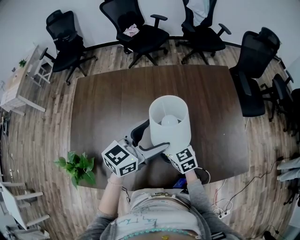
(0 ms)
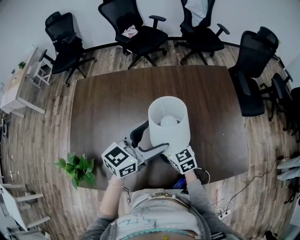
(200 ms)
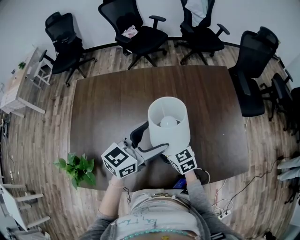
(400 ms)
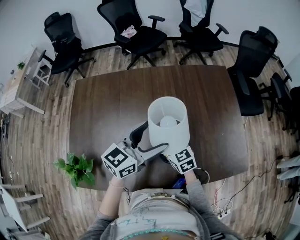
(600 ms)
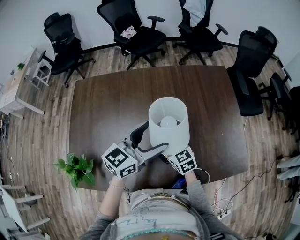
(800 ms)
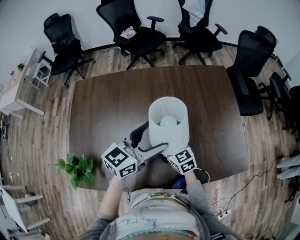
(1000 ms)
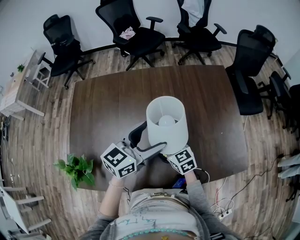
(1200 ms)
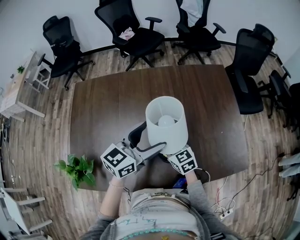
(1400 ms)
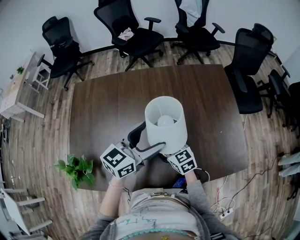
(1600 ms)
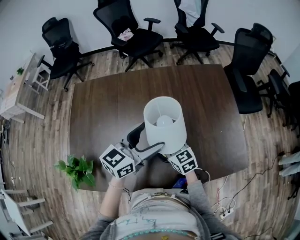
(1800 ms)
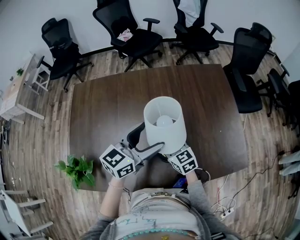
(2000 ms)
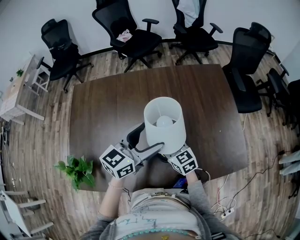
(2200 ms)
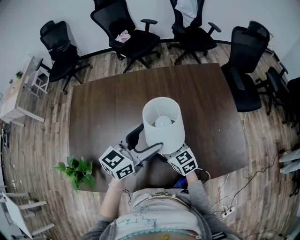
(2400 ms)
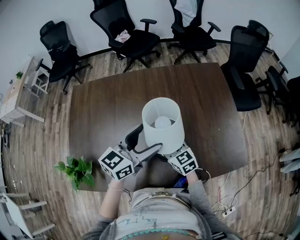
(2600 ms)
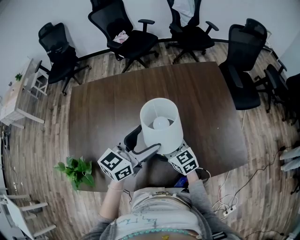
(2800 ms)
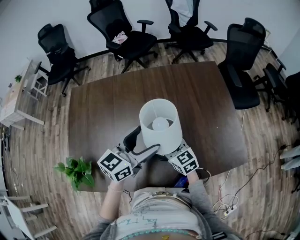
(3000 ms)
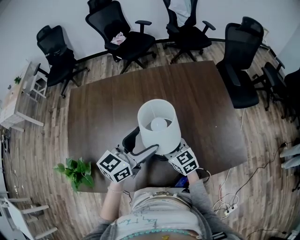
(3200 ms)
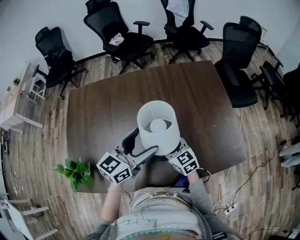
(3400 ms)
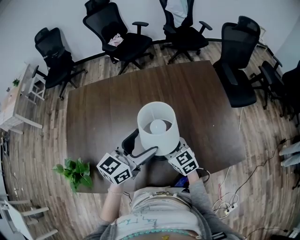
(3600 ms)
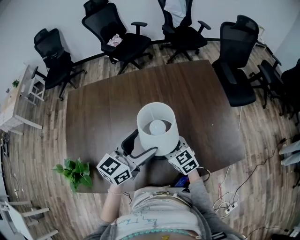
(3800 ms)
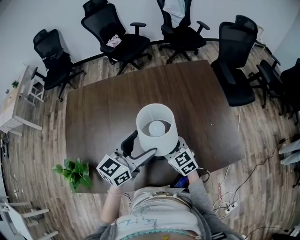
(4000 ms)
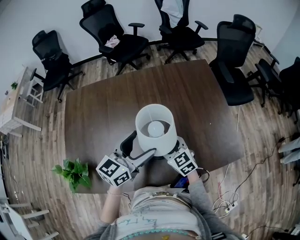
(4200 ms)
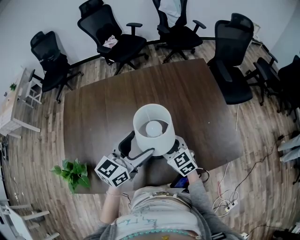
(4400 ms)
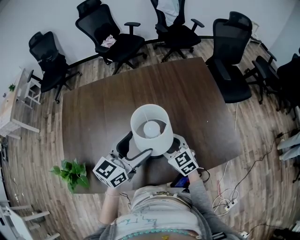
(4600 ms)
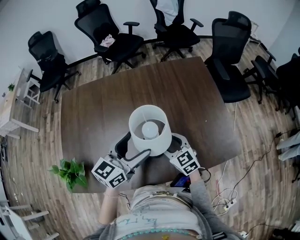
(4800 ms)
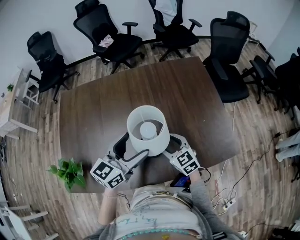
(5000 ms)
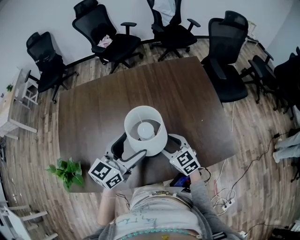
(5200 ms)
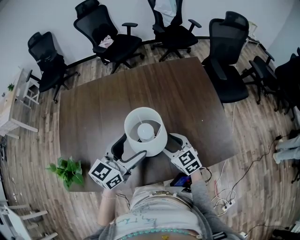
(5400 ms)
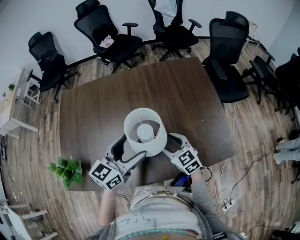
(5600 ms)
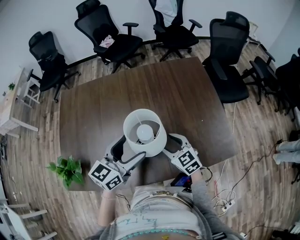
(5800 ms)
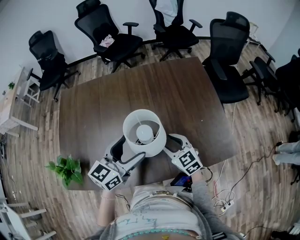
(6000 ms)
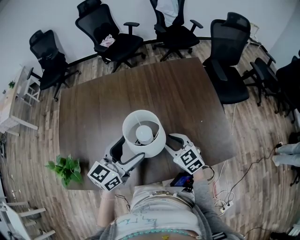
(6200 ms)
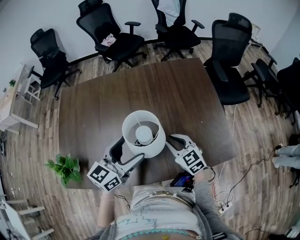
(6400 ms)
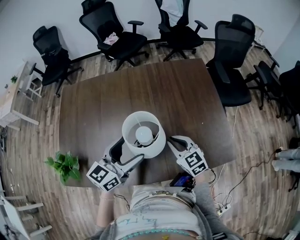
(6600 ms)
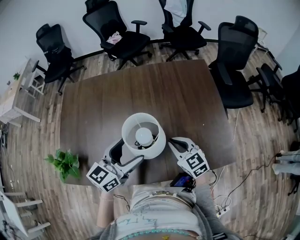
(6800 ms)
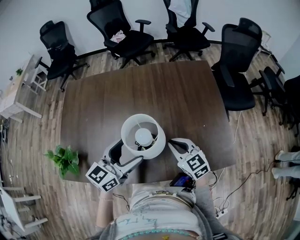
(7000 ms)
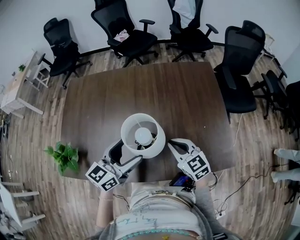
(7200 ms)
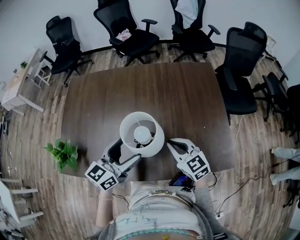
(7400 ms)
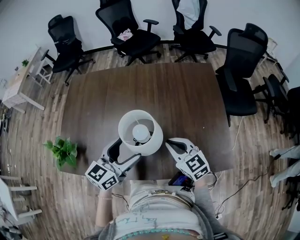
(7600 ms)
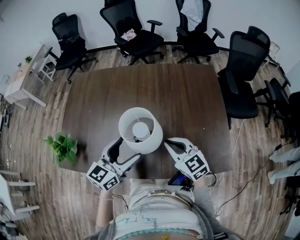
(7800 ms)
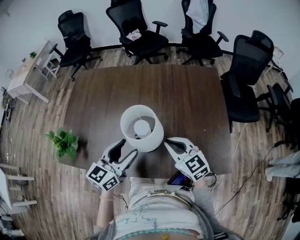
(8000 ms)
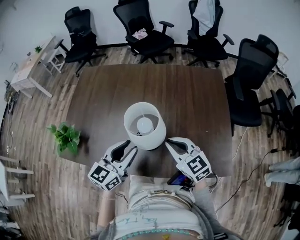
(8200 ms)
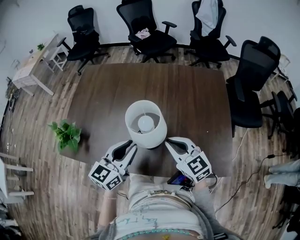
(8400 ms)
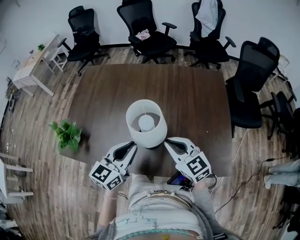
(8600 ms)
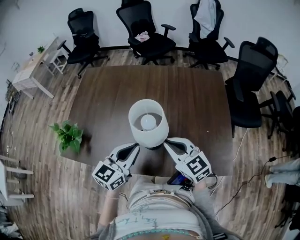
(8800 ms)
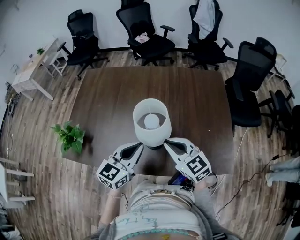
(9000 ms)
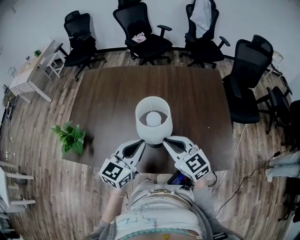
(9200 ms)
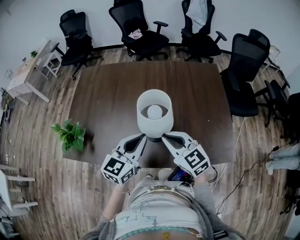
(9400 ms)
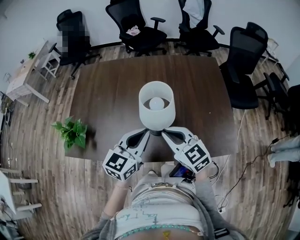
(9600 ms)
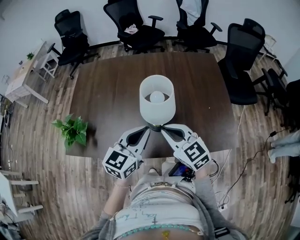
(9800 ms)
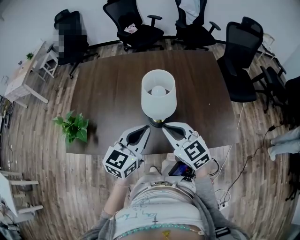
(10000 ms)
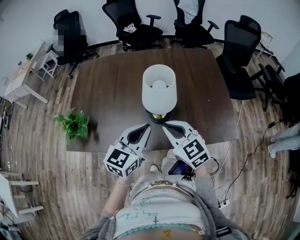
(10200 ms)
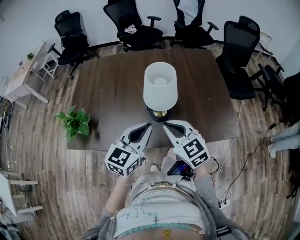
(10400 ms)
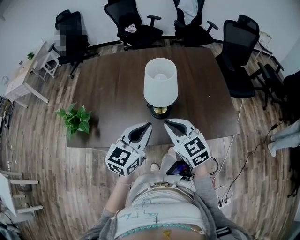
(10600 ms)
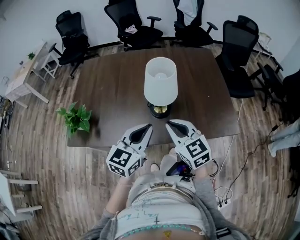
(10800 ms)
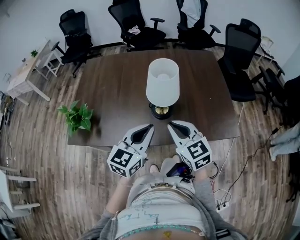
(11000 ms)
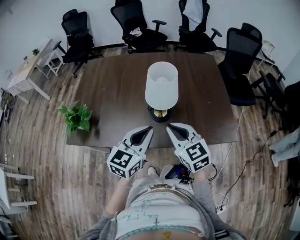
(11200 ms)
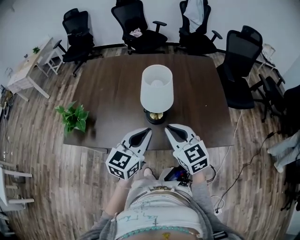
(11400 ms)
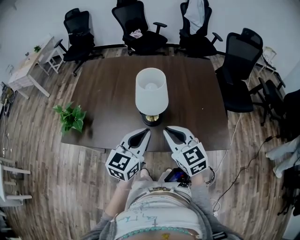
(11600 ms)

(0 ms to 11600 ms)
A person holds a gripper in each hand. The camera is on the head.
0 ms - 1400 ms: The right gripper opens its fingers.
1400 ms - 2800 ms: The right gripper opens up.
2800 ms - 4400 ms: The grippers move only a little.
4400 ms - 5800 ms: The right gripper travels to the right by some 5 cm.
5800 ms - 7200 ms: The right gripper ends up approximately 5 cm from where it was, and closes up.
7200 ms - 8800 ms: The left gripper heads backward, covering some 5 cm, and closes; the right gripper is displaced upward by roughly 5 cm.
8800 ms - 10200 ms: The left gripper shifts about 5 cm backward, while the right gripper travels backward and to the left by approximately 10 cm.
10200 ms - 11600 ms: The left gripper shifts by some 5 cm. Meanwhile the right gripper travels to the right by about 5 cm.

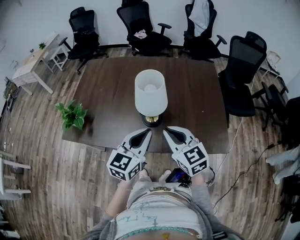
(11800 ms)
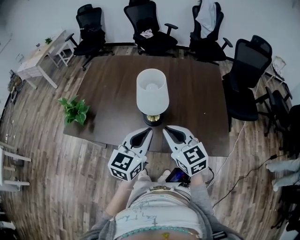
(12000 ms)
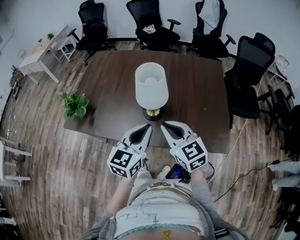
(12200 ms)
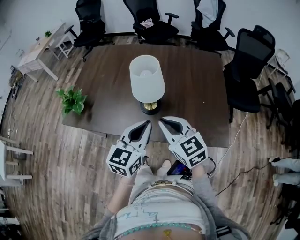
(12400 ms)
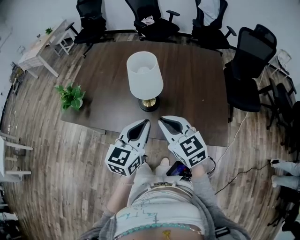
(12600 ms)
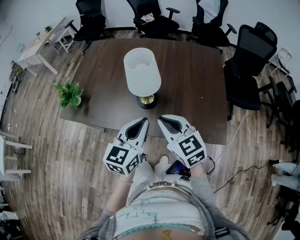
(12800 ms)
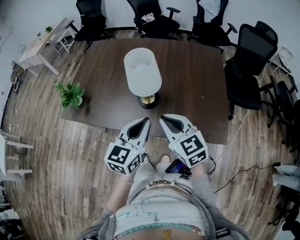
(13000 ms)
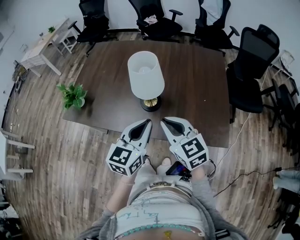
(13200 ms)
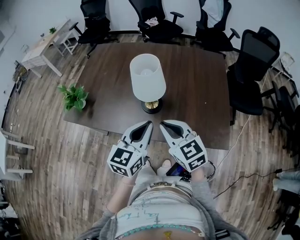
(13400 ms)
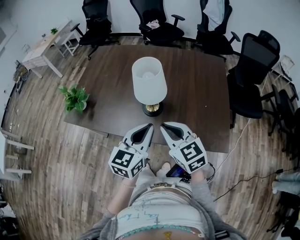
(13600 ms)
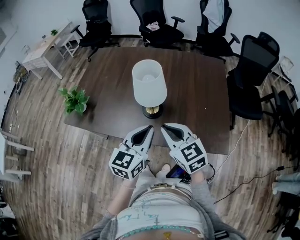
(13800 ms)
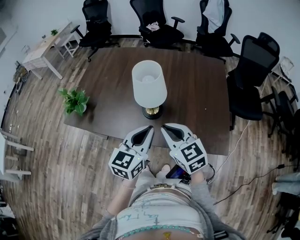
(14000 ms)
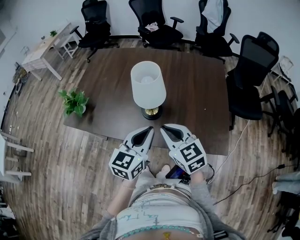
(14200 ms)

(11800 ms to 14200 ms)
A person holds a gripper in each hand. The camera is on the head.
11800 ms - 13000 ms: The left gripper shifts by approximately 5 cm.
13000 ms - 14200 ms: There are only small adjustments of the grippers.

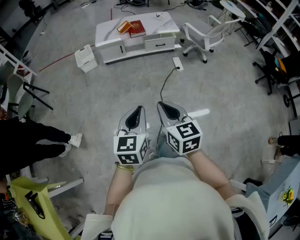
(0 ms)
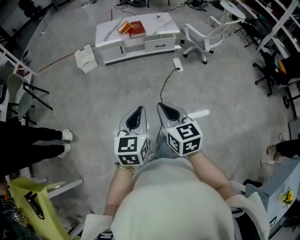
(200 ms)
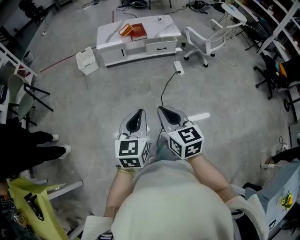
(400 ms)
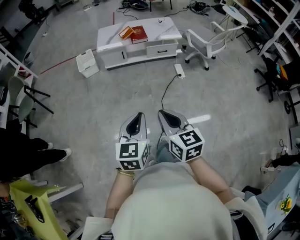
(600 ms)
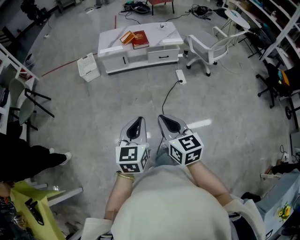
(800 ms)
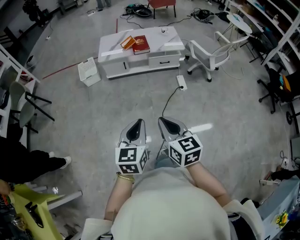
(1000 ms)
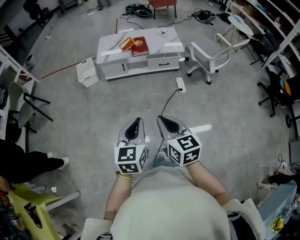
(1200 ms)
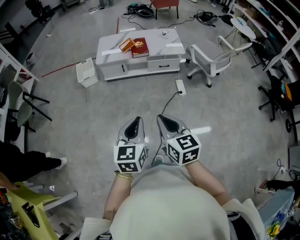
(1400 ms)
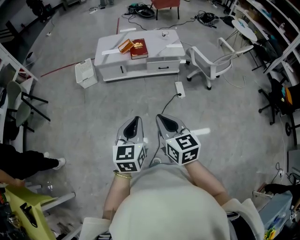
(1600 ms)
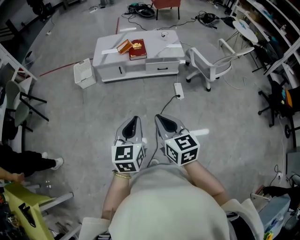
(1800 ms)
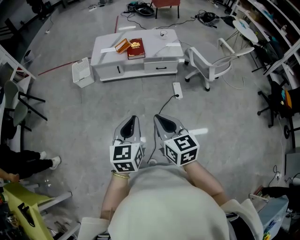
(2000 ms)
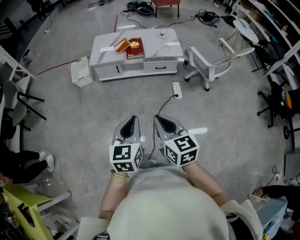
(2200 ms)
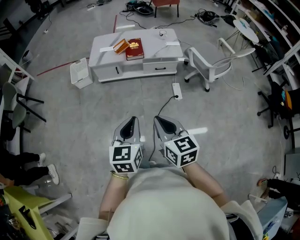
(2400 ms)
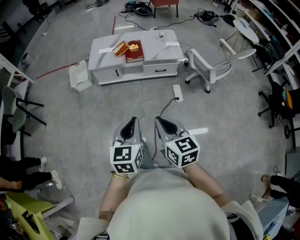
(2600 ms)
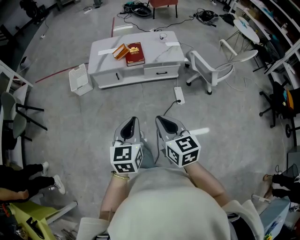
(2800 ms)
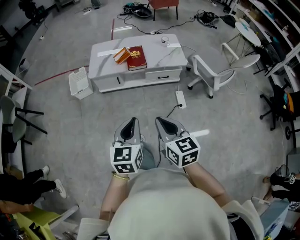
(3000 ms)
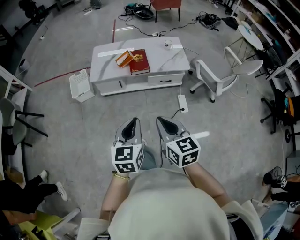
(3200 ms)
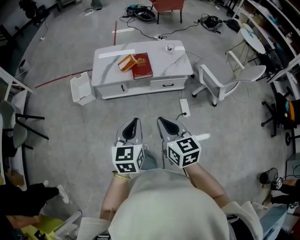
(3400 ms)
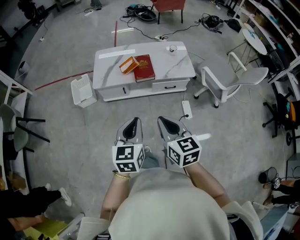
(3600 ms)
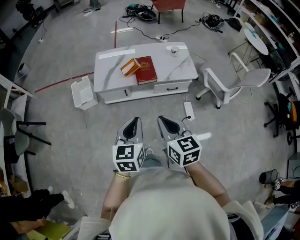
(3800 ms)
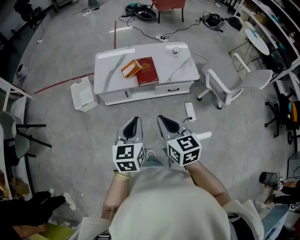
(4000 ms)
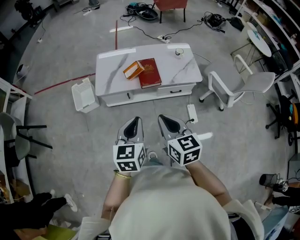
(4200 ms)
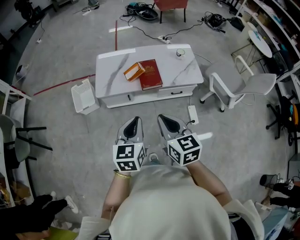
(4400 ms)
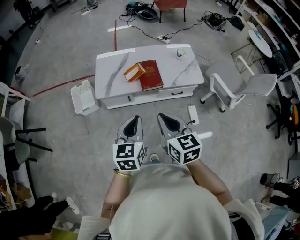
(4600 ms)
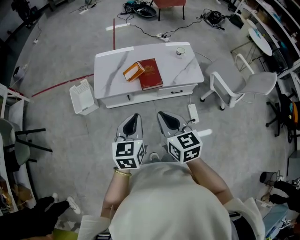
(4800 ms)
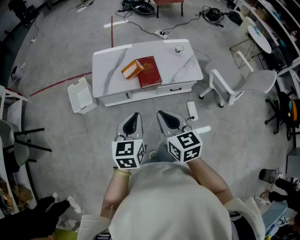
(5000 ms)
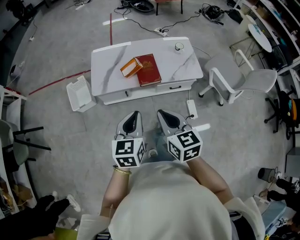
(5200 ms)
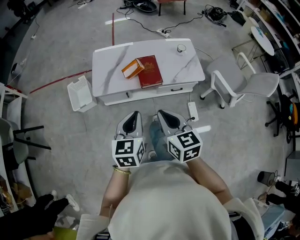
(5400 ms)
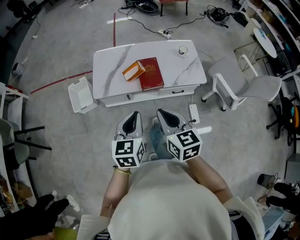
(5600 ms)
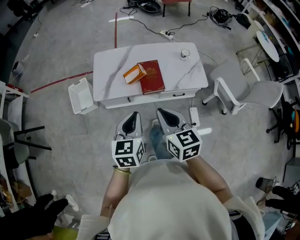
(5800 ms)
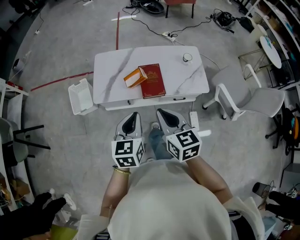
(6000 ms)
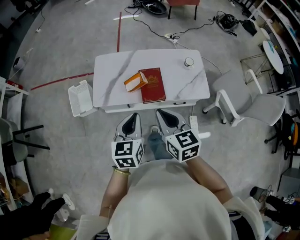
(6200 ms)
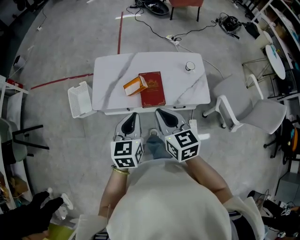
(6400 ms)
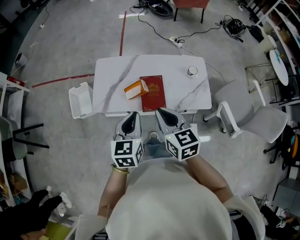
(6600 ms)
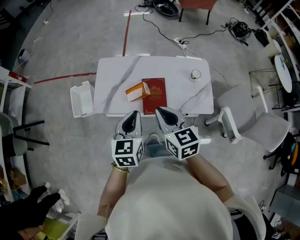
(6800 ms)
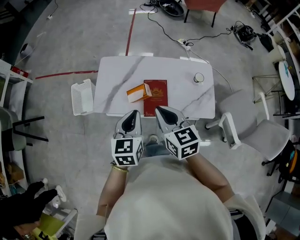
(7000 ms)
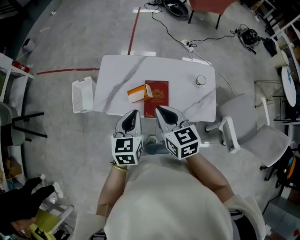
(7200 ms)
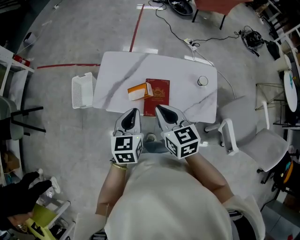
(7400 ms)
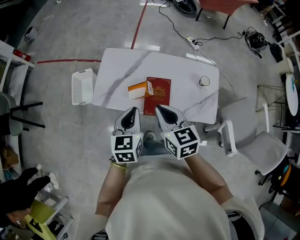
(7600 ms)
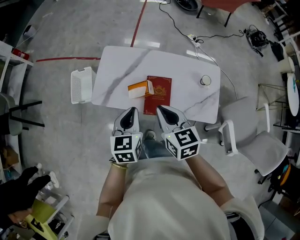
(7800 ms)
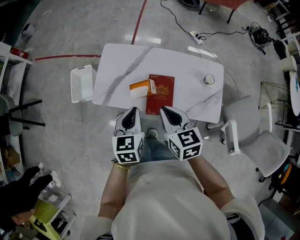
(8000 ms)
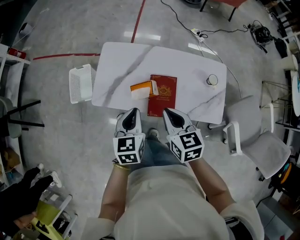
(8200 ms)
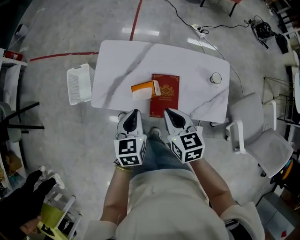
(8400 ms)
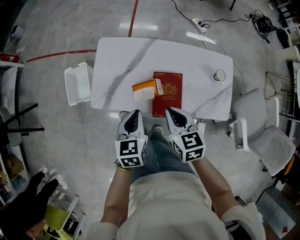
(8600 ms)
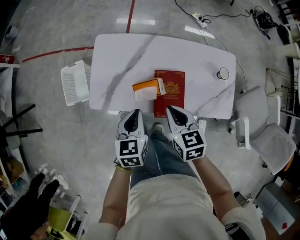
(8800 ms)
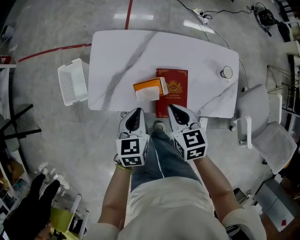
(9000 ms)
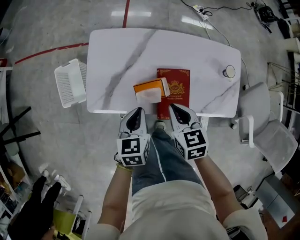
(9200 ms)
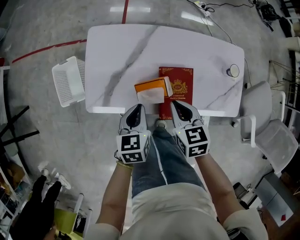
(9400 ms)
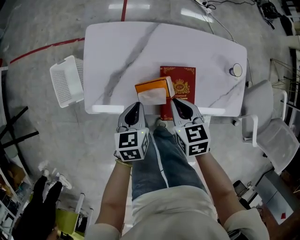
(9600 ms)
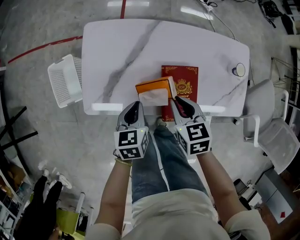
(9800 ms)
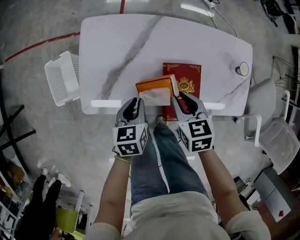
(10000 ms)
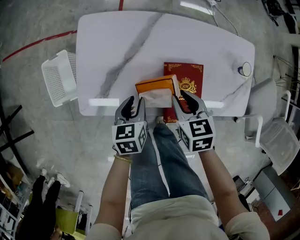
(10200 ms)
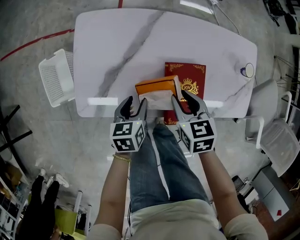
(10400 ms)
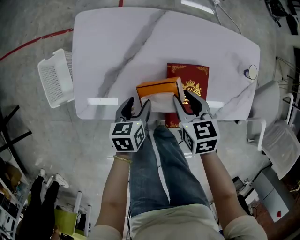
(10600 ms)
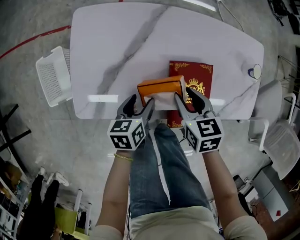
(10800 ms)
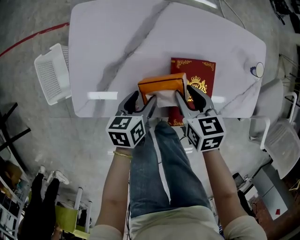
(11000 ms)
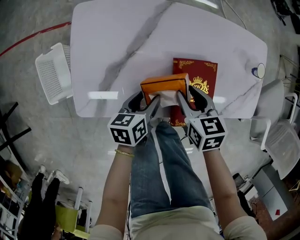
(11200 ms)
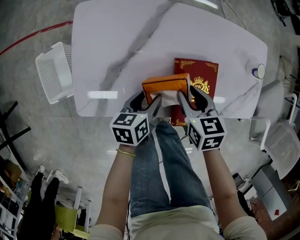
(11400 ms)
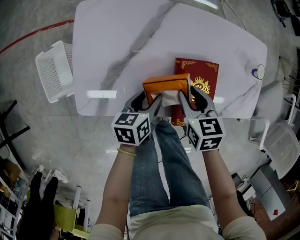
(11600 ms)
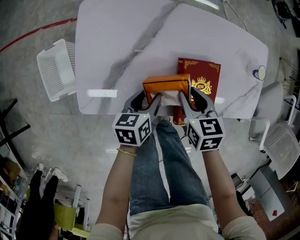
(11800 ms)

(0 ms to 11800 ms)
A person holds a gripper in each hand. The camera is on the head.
0 ms - 1400 ms: Both grippers move forward, approximately 20 cm.
1400 ms - 3000 ms: The grippers both shift forward by about 20 cm.
3000 ms - 4400 ms: The two grippers go roughly 25 cm forward.
4400 ms - 6000 ms: Both grippers travel together forward, some 15 cm.
6000 ms - 7400 ms: Both grippers travel together forward, roughly 20 cm.
7400 ms - 8800 ms: The grippers both shift downward and forward by approximately 20 cm.
8800 ms - 10400 ms: The right gripper goes about 20 cm downward and forward, while the left gripper is displaced downward by approximately 20 cm, and opens up.
10400 ms - 11800 ms: The grippers make only small movements.
